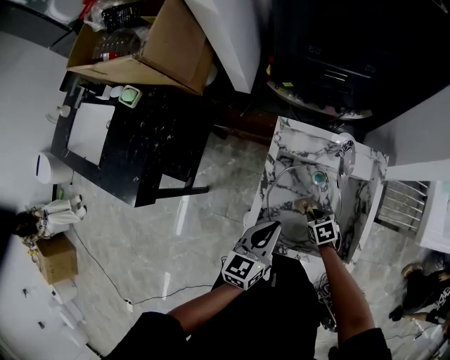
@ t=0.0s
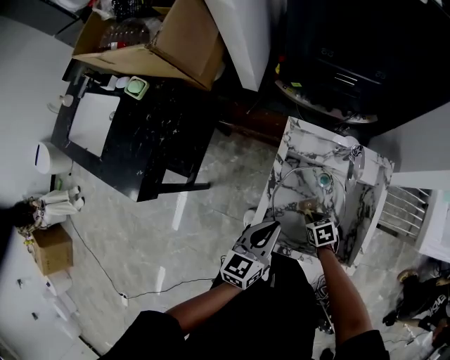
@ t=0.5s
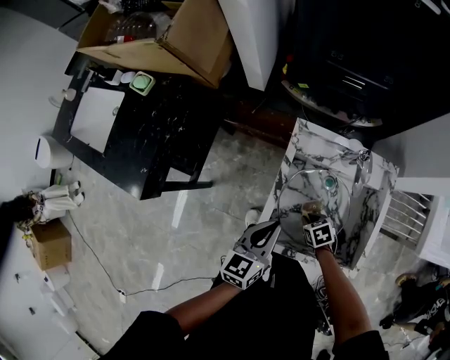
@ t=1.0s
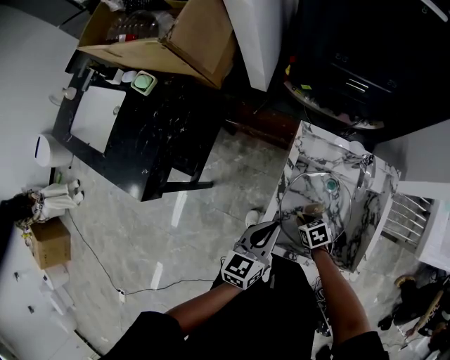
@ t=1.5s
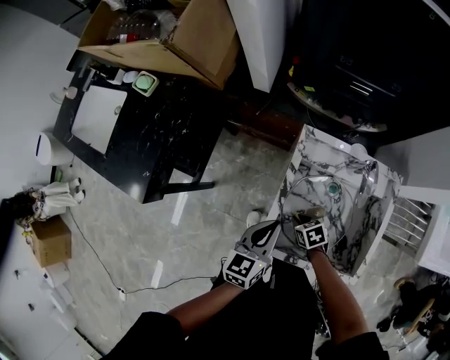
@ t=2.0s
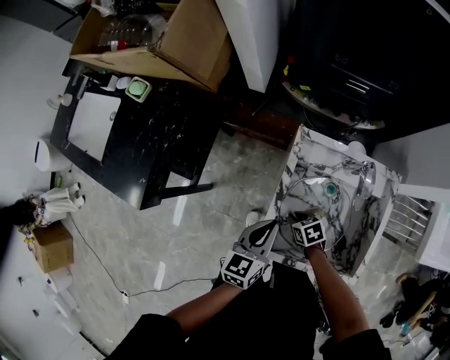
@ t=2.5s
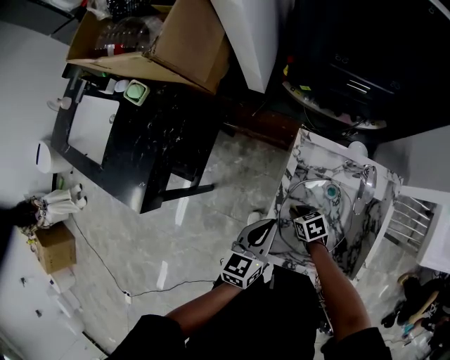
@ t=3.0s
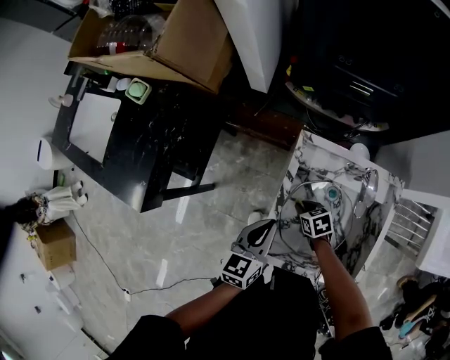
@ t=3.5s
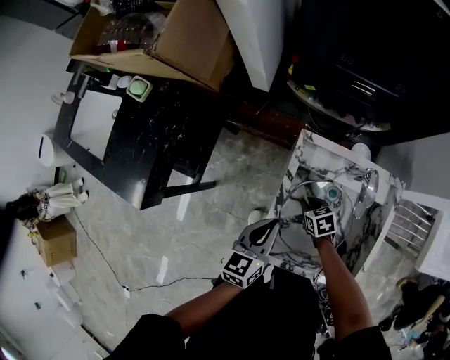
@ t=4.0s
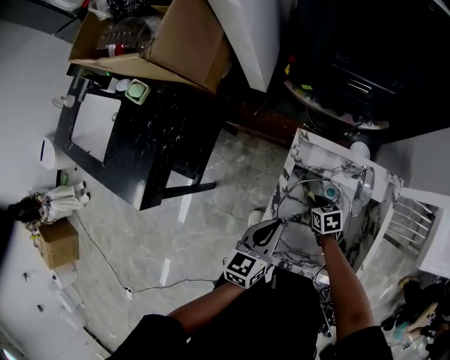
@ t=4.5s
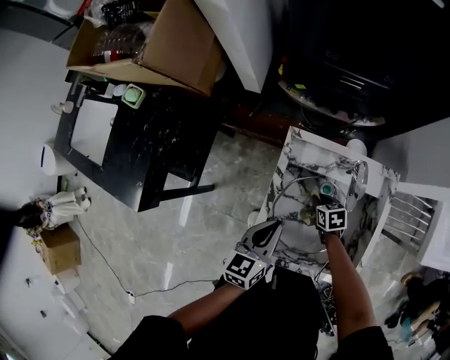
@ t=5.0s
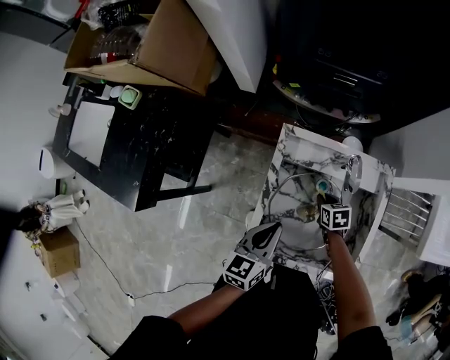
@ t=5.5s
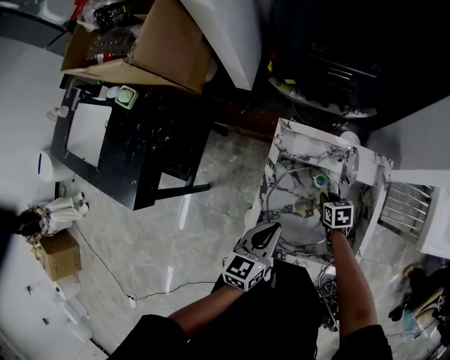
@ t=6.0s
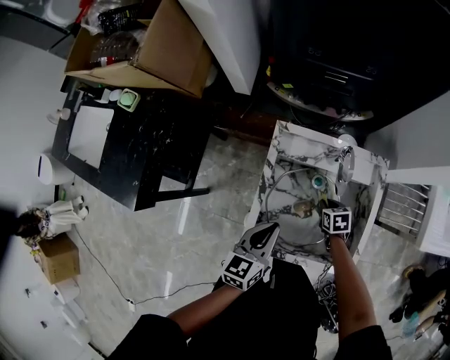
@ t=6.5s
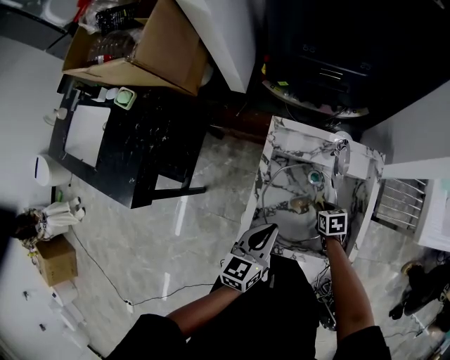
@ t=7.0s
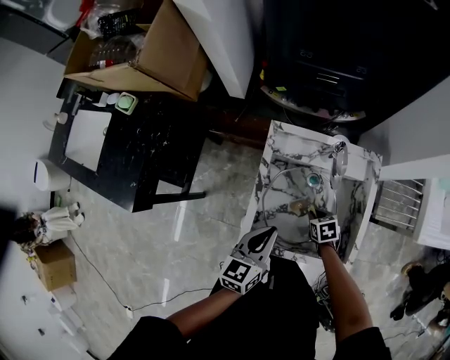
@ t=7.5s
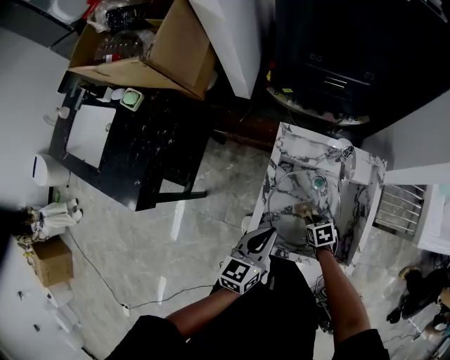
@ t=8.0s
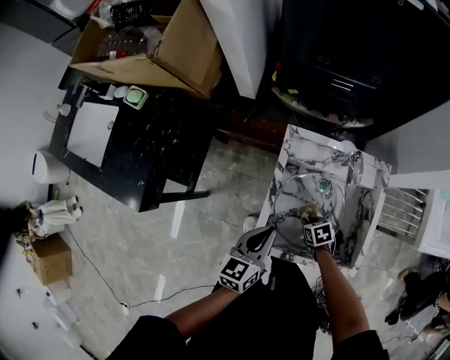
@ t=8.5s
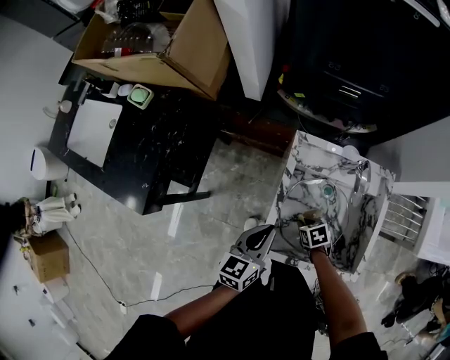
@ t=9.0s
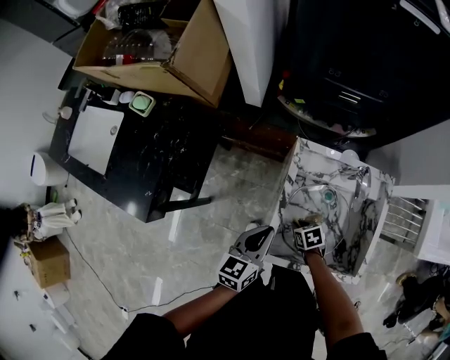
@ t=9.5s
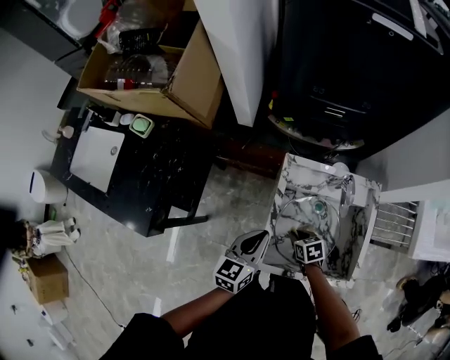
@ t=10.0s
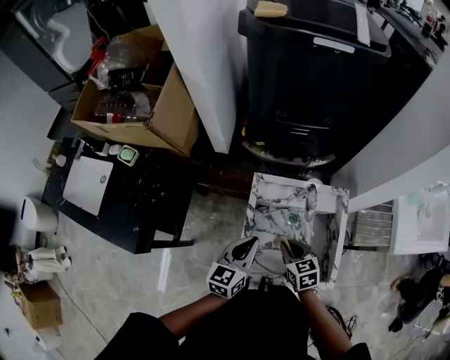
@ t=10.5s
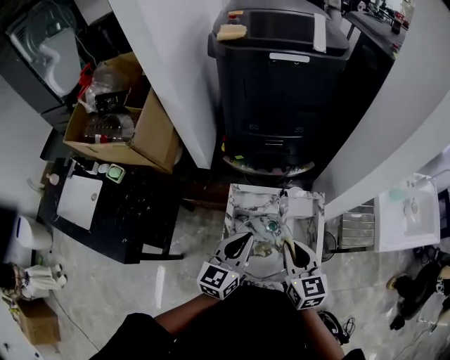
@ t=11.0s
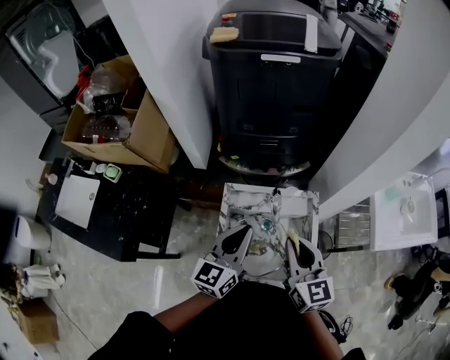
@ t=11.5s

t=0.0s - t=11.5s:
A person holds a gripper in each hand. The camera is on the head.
t=0.0s - t=2.0s: The right gripper travels to the left by approximately 10 cm; the left gripper heads to the left, covering roughly 5 cm.
t=2.0s - t=4.0s: The right gripper is displaced forward and to the right by approximately 10 cm.
t=4.0s - t=6.0s: The right gripper heads to the right, covering some 15 cm; the left gripper moves to the right, about 5 cm.
t=6.0s - t=7.5s: The right gripper shifts some 10 cm backward.
t=7.5s - t=9.5s: The left gripper moves to the left and forward, about 10 cm. Meanwhile the right gripper goes about 15 cm to the left.
t=9.5s - t=11.5s: The left gripper shifts about 20 cm upward, and rotates approximately 20 degrees. Meanwhile the right gripper heads upward, covering approximately 40 cm, and points its fingers some 50 degrees further upward.

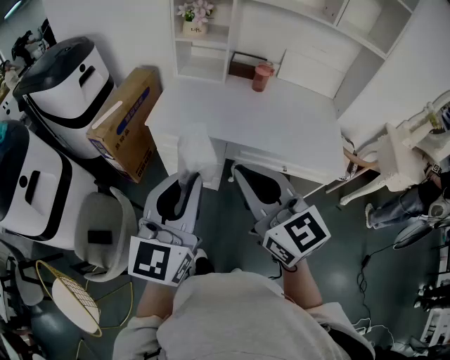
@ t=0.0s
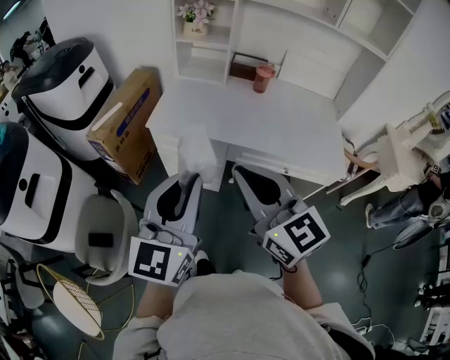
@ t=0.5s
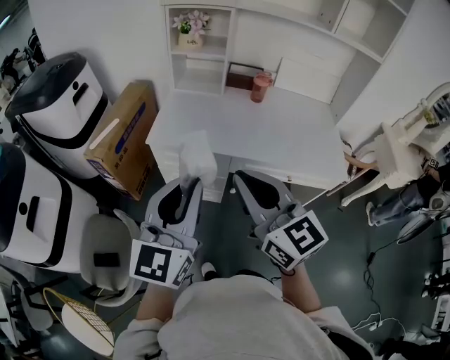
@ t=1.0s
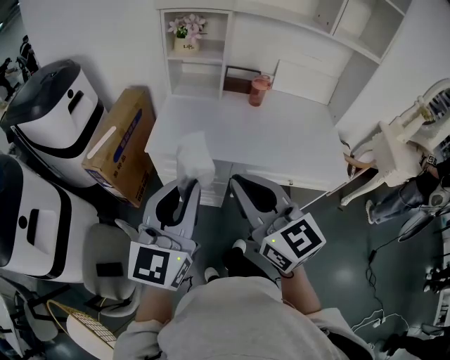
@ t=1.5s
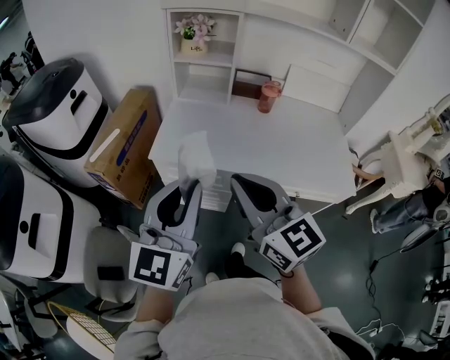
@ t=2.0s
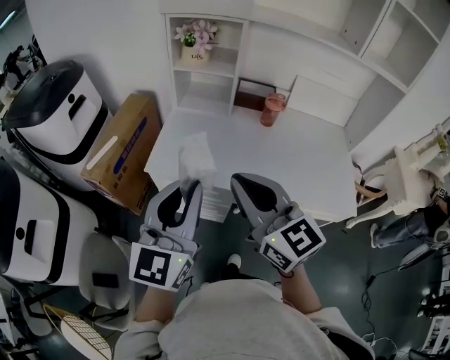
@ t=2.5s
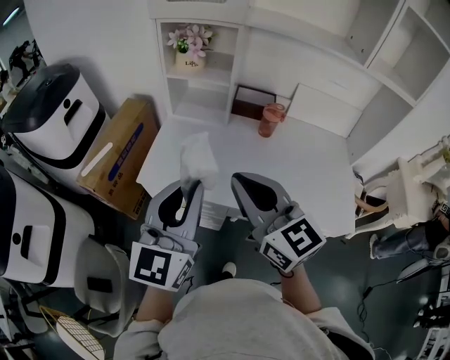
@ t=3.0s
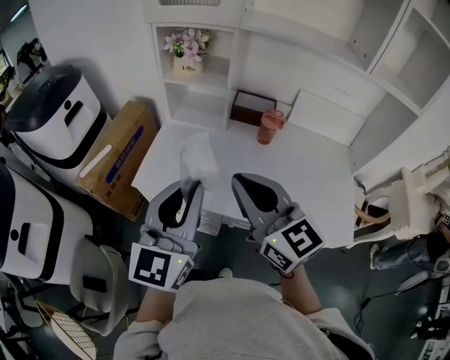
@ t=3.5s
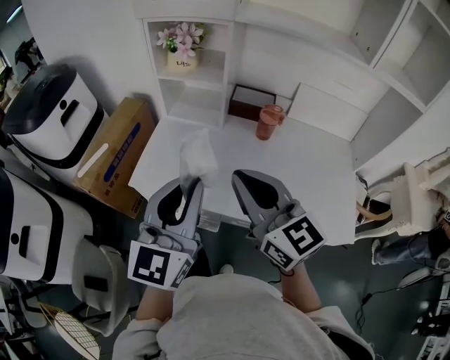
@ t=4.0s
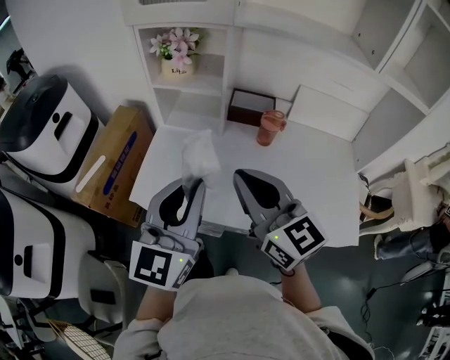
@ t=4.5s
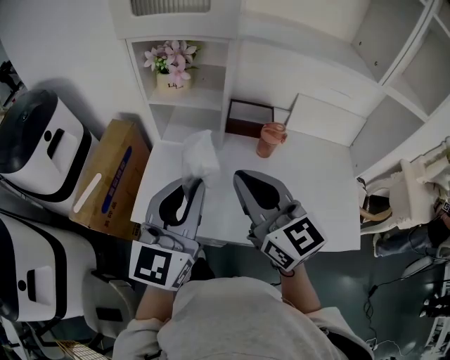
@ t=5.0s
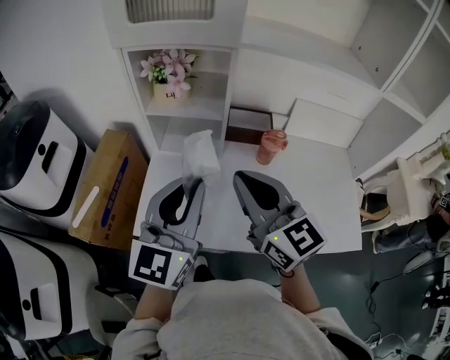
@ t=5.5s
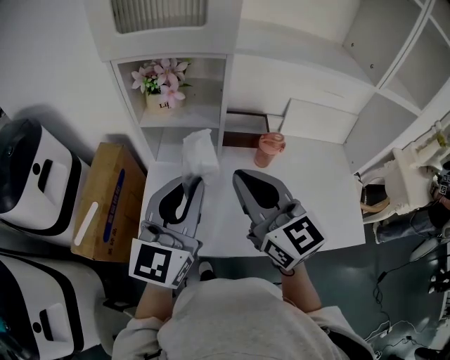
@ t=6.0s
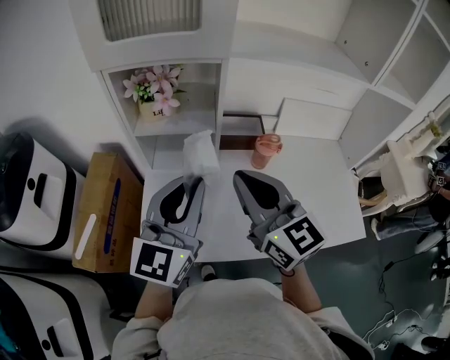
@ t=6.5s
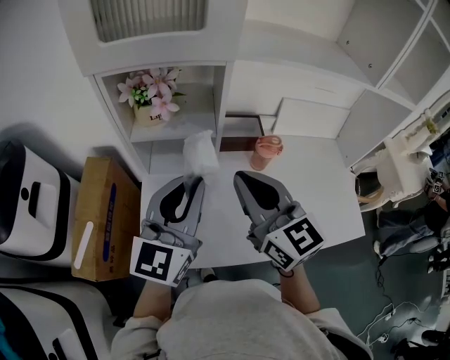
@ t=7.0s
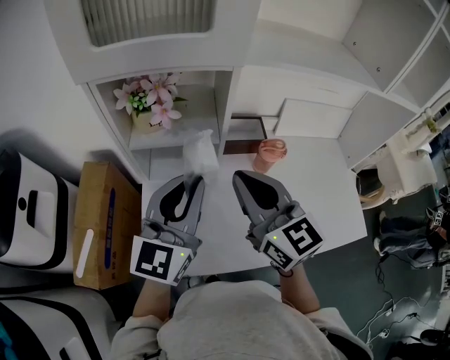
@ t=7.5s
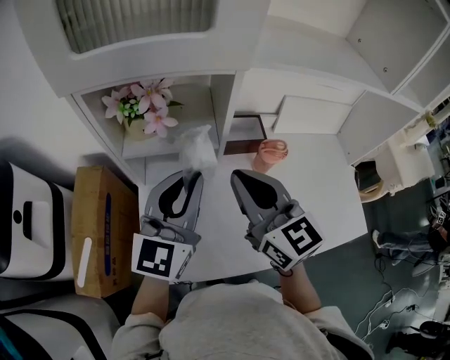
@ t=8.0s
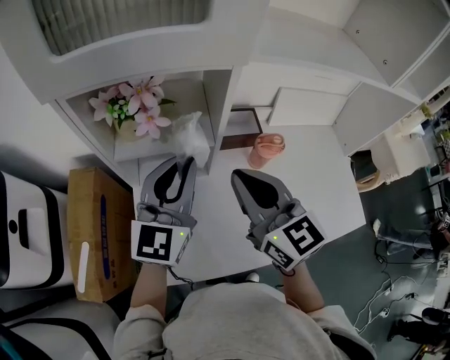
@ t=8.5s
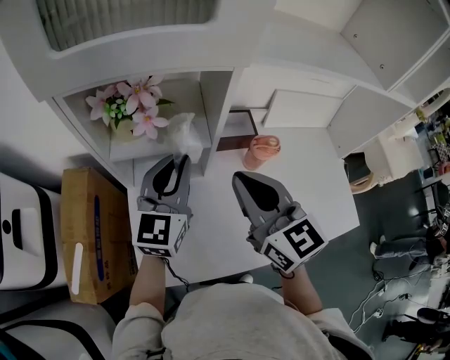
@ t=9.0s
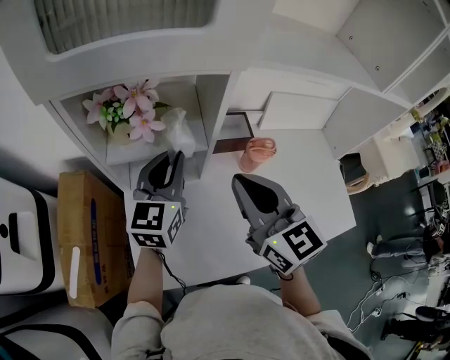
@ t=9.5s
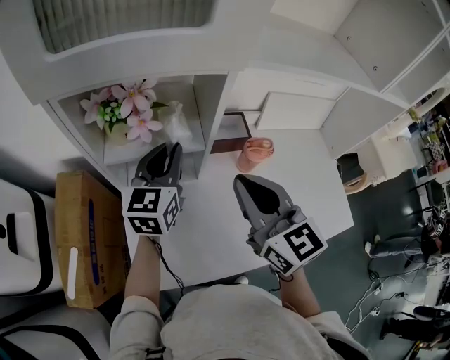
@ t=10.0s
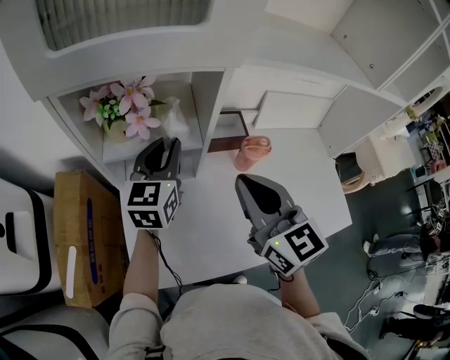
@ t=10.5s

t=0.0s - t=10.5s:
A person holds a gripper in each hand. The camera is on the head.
t=0.0s - t=2.0s: The grippers both shift forward by about 15 cm.
t=2.0s - t=4.0s: The grippers both shift forward and to the right by approximately 20 cm.
t=4.0s - t=6.5s: Both grippers travel together forward, about 20 cm.
t=6.5s - t=8.5s: The right gripper goes about 10 cm forward; the left gripper moves forward, about 15 cm.
t=8.5s - t=10.5s: The left gripper heads forward and downward, covering approximately 10 cm.

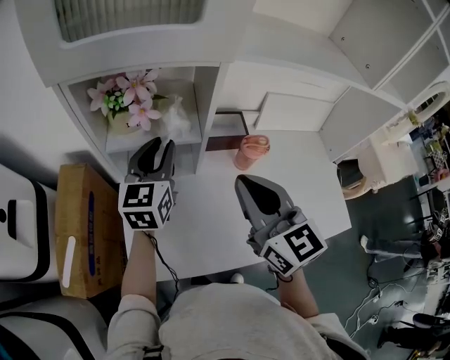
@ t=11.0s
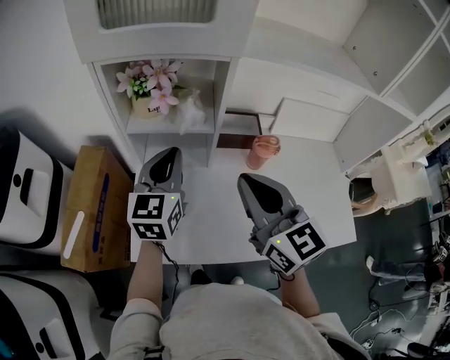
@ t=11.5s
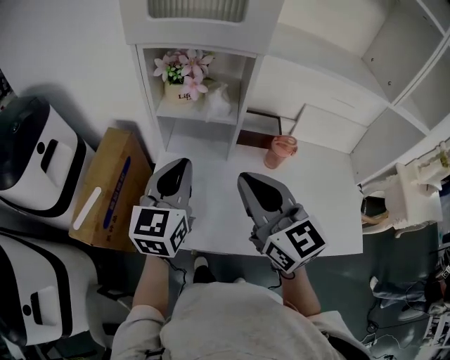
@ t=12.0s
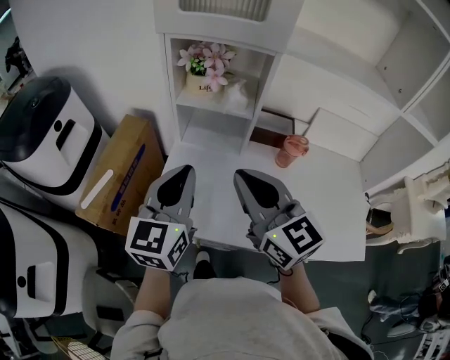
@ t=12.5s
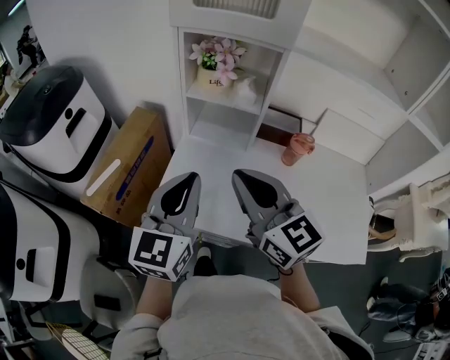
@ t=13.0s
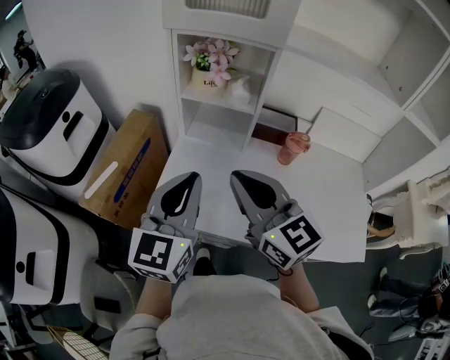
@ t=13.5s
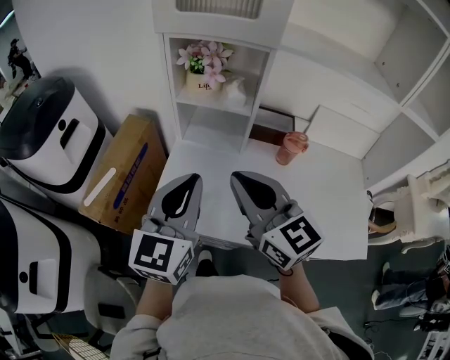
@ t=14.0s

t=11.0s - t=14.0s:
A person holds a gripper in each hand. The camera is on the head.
t=11.0s - t=12.5s: The left gripper moves backward, roughly 25 cm, and closes up, while the right gripper moves backward and to the left, about 15 cm, and rotates approximately 20 degrees.
t=12.5s - t=14.0s: The left gripper changes place by roughly 5 cm.

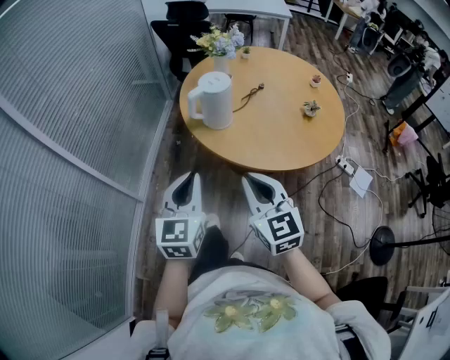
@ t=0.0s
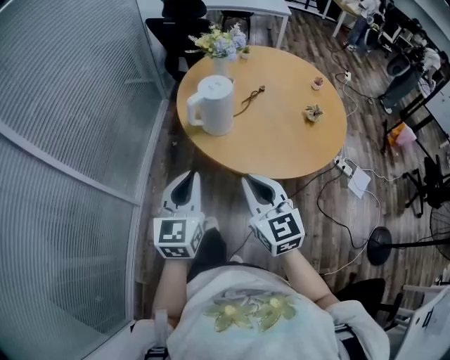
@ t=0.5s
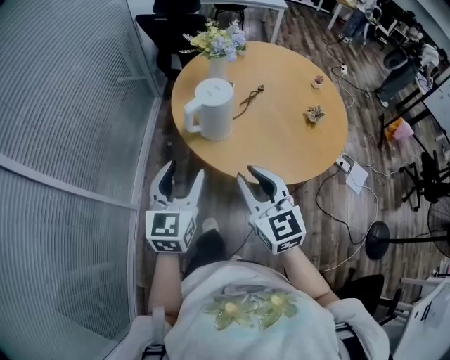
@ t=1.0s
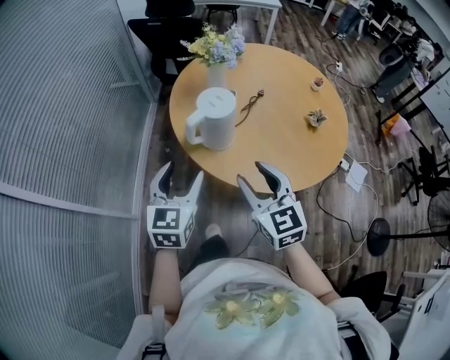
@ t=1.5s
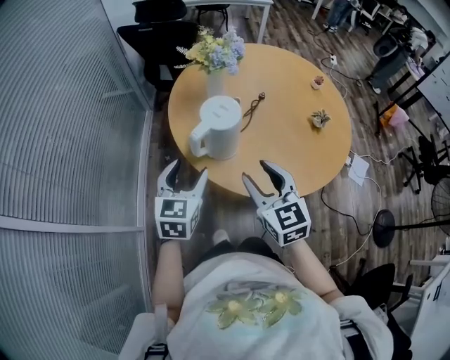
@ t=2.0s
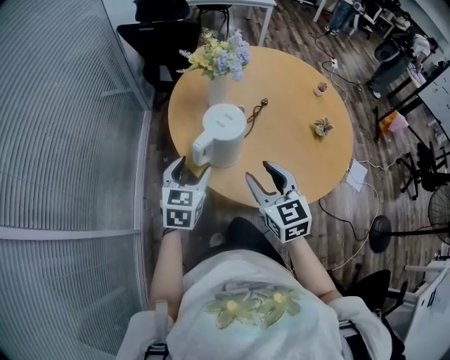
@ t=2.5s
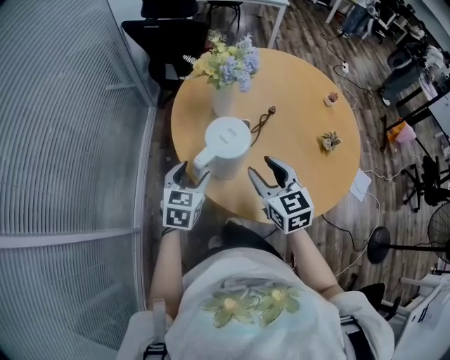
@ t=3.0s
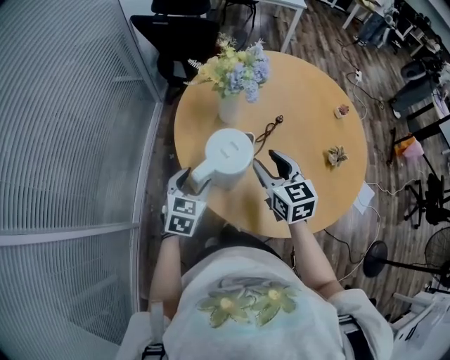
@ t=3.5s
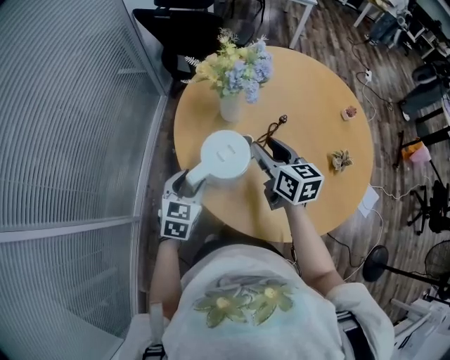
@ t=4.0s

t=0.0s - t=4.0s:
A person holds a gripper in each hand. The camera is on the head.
t=0.0s - t=2.0s: The two grippers go approximately 25 cm forward. The left gripper opens up, while the right gripper opens up.
t=2.0s - t=4.0s: The right gripper goes roughly 25 cm forward, and rotates some 30 degrees. Meanwhile the left gripper travels forward and downward by about 15 cm.
